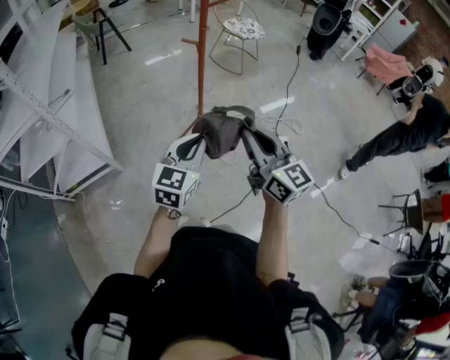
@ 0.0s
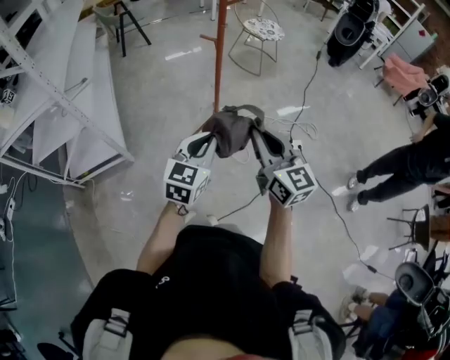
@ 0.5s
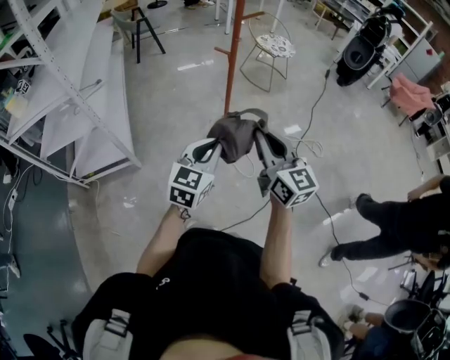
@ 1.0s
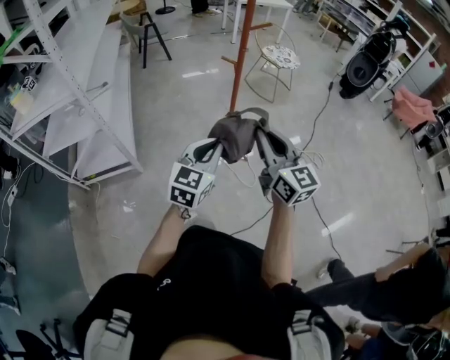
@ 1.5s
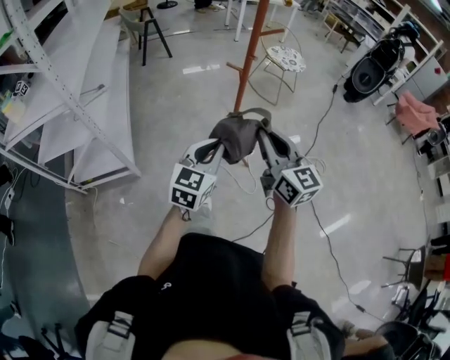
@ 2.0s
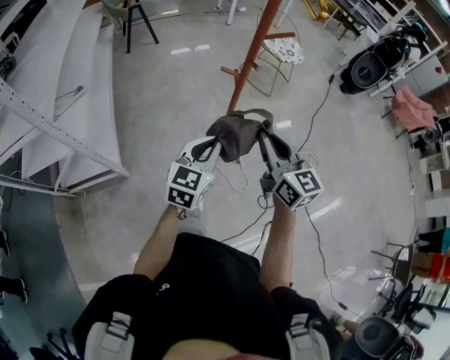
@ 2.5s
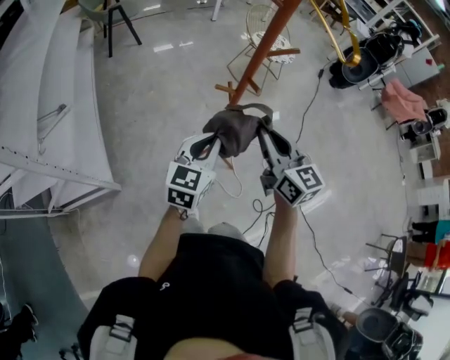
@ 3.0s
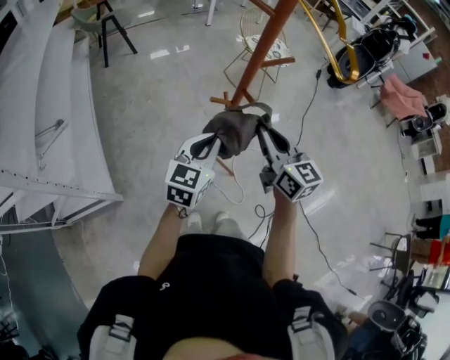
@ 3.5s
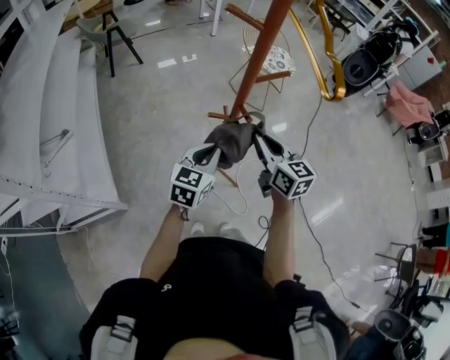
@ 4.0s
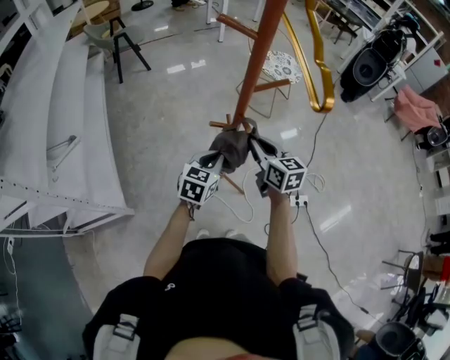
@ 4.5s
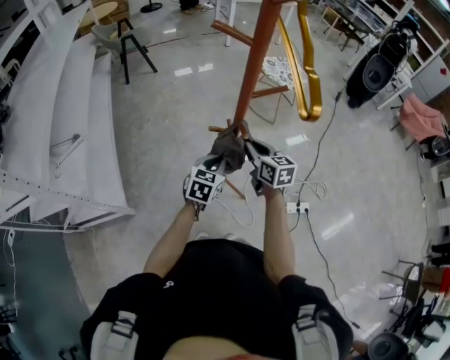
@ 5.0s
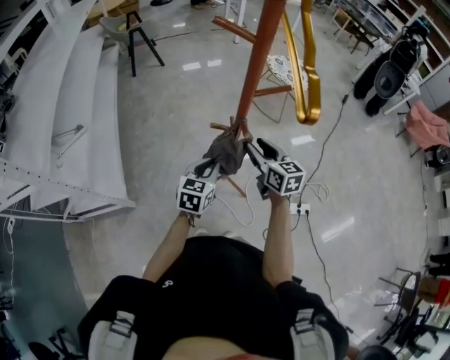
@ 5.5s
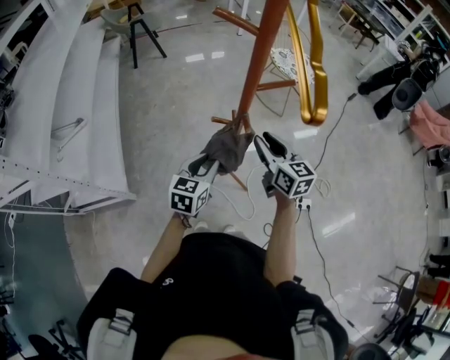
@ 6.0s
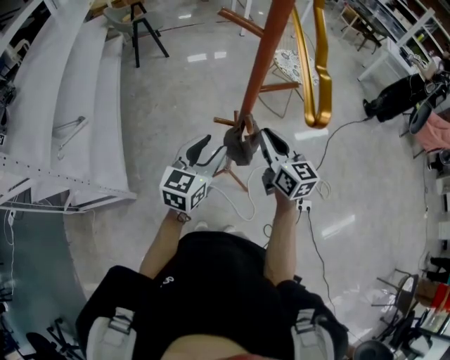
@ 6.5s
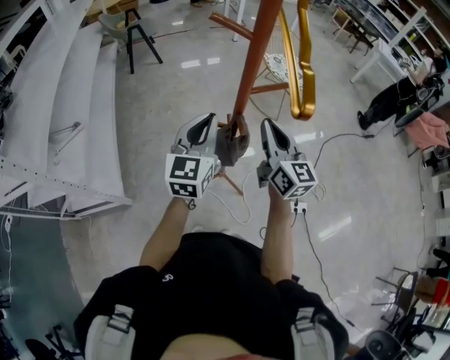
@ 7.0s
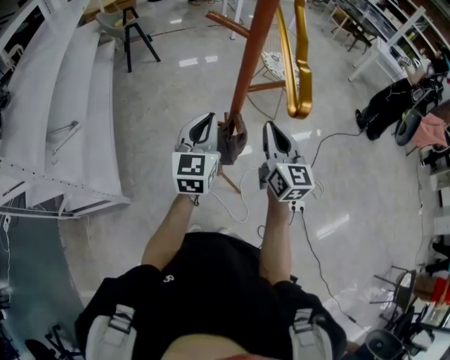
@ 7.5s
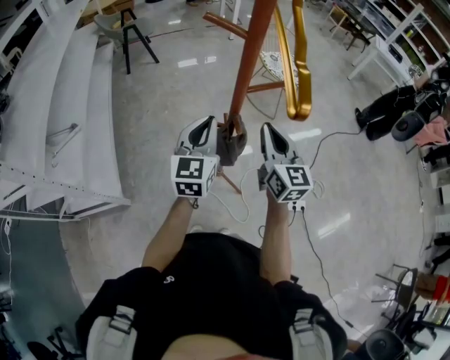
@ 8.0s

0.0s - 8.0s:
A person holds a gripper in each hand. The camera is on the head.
0.0s - 2.0s: The two grippers go approximately 10 cm forward.
2.0s - 4.0s: Both grippers travel together forward, some 35 cm.
4.0s - 6.0s: The left gripper is displaced downward by roughly 5 cm, and opens up; the right gripper opens.
6.0s - 8.0s: The right gripper travels upward by about 10 cm, and closes its fingers. The left gripper goes approximately 15 cm upward and forward, changes its angle by some 30 degrees, and closes up.

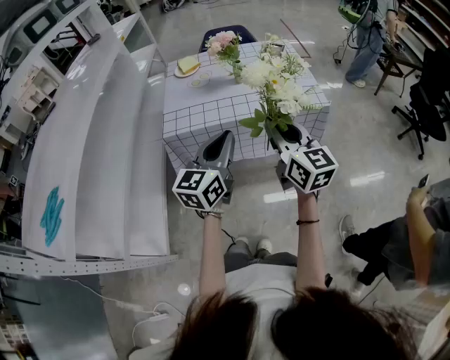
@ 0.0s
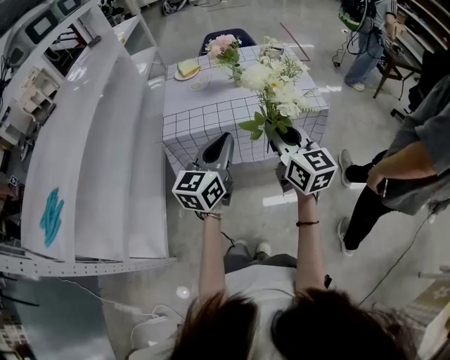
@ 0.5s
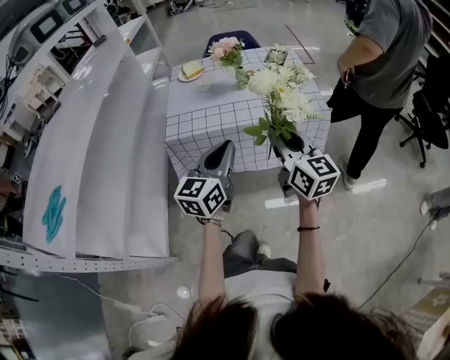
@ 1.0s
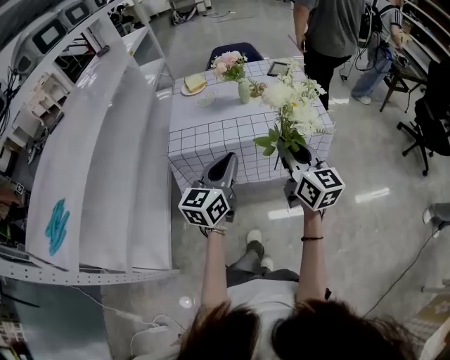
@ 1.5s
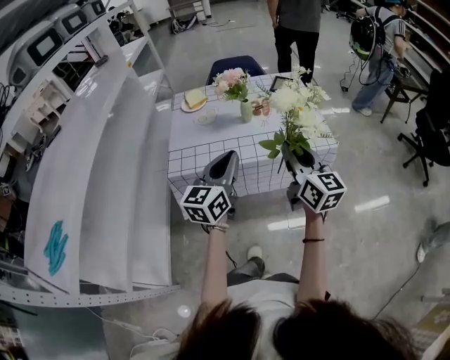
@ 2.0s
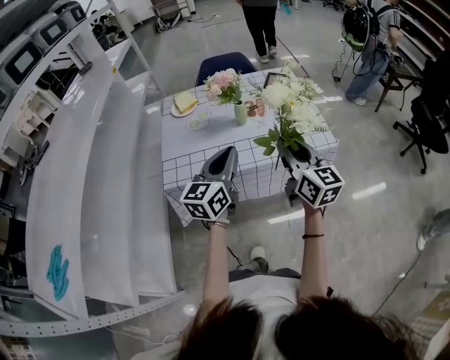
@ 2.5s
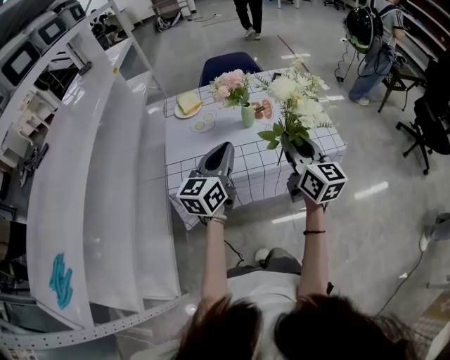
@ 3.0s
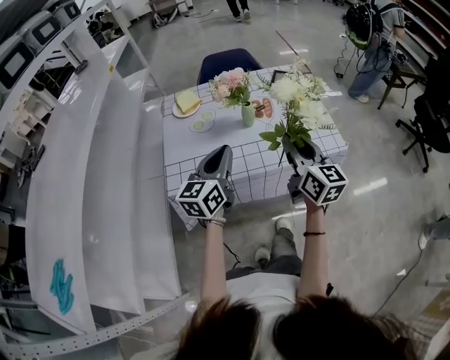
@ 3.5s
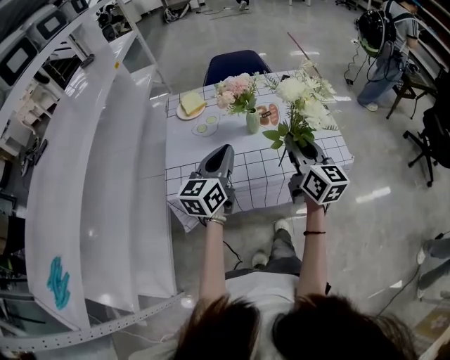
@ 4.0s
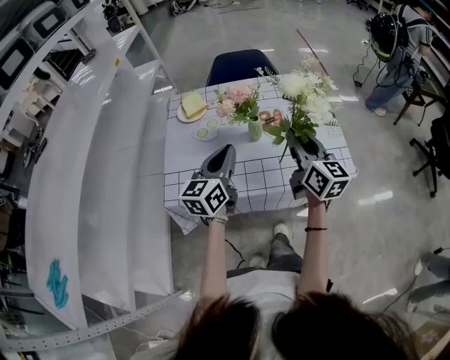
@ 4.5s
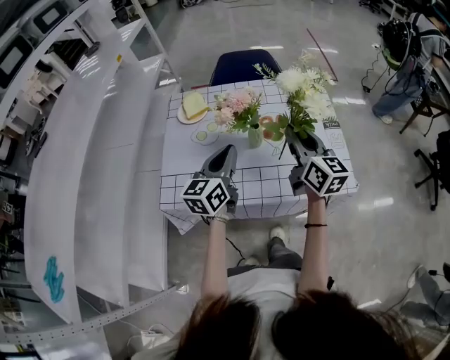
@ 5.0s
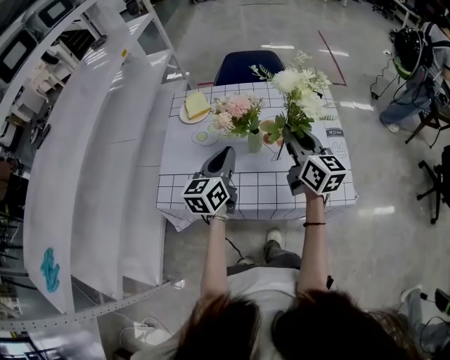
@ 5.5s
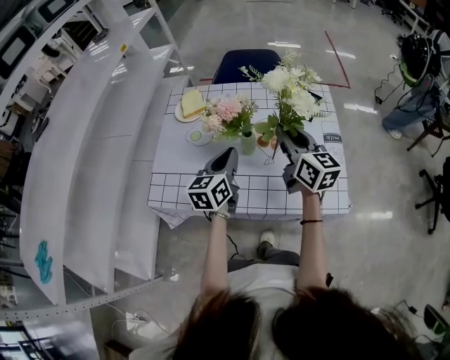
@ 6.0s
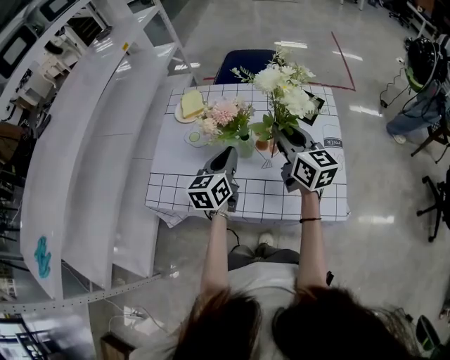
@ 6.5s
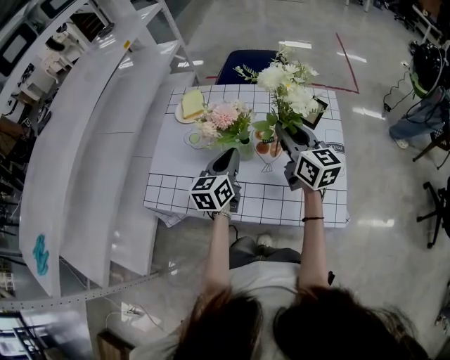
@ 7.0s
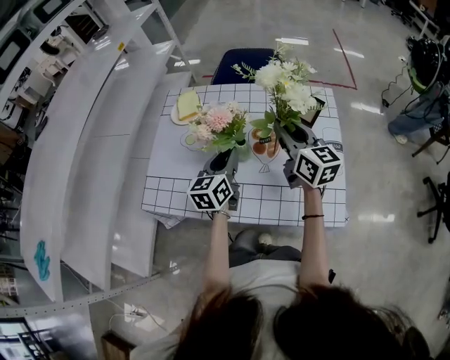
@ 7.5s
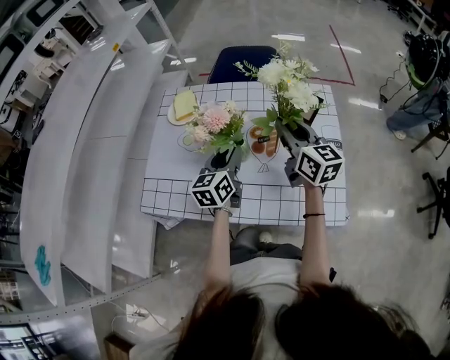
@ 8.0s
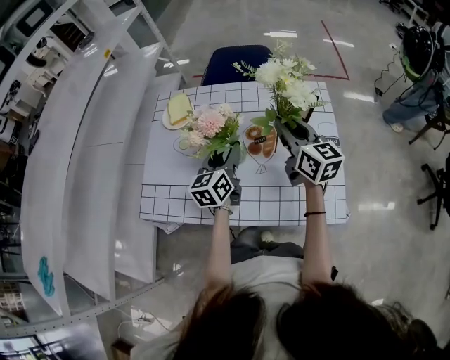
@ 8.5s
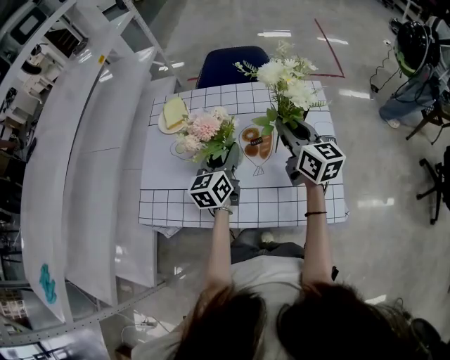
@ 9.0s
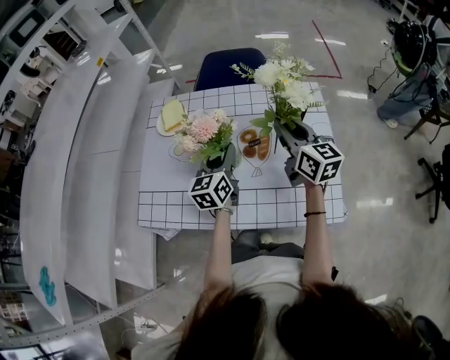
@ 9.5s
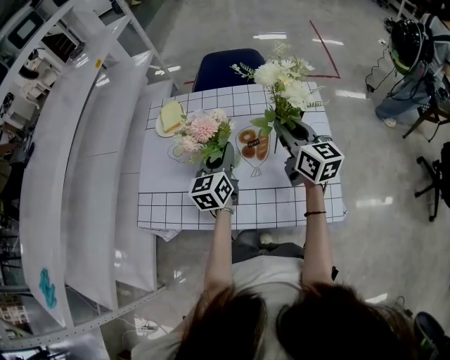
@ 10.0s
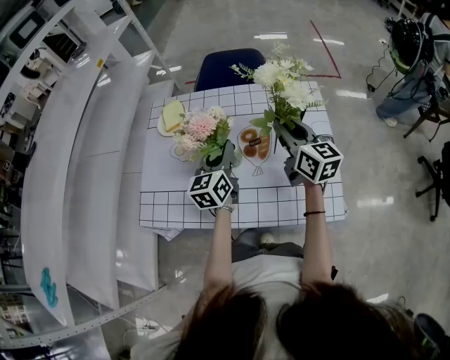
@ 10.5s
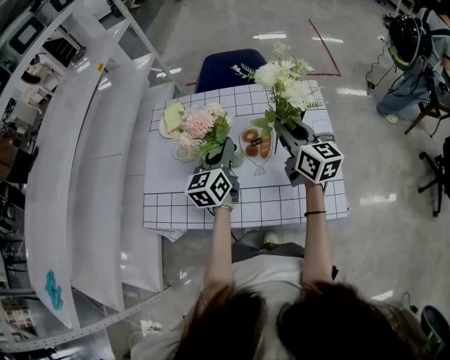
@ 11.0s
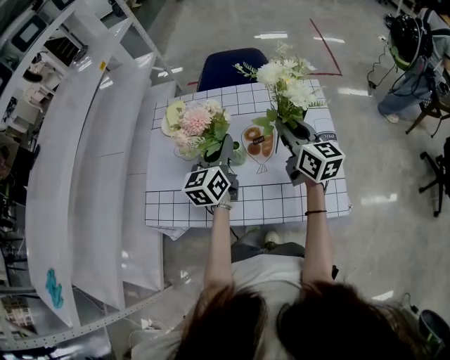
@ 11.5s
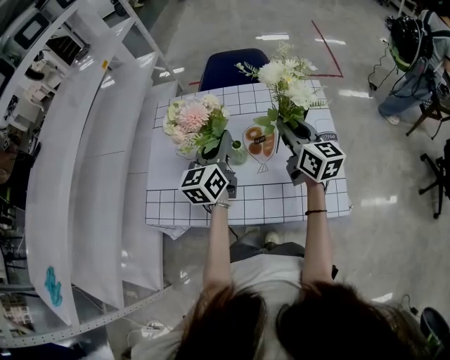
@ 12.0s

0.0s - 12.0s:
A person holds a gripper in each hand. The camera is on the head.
0.0s - 2.0s: The grippers both shift forward by approximately 10 cm.
2.0s - 4.0s: The two grippers go roughly 15 cm forward.
4.0s - 6.0s: The left gripper is displaced forward, downward and to the right by about 15 cm; the right gripper moves forward, approximately 20 cm.
6.0s - 8.0s: Both grippers travel together forward, approximately 5 cm. The left gripper opens.
8.0s - 10.0s: The grippers stay close to where they were, moving slightly.
10.0s - 12.0s: The left gripper travels upward by some 5 cm.

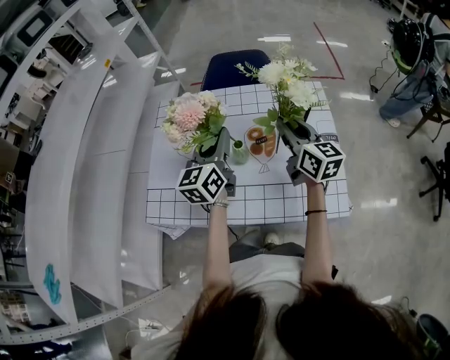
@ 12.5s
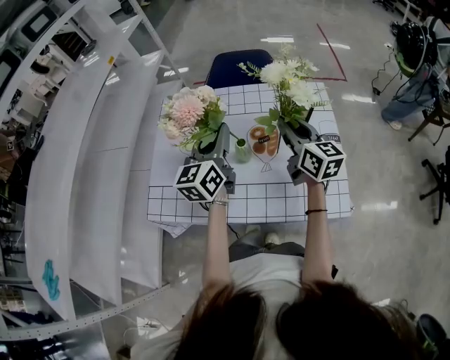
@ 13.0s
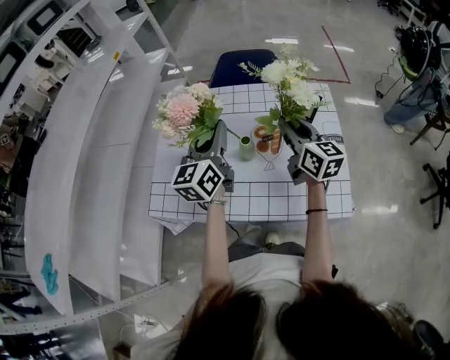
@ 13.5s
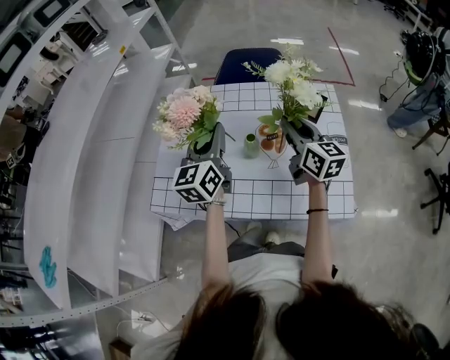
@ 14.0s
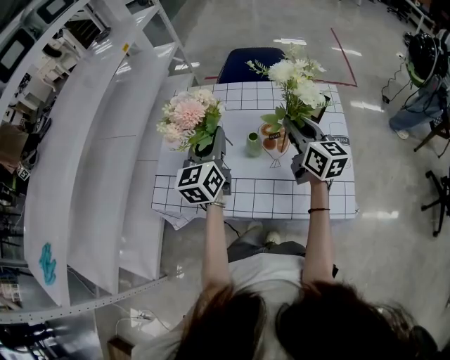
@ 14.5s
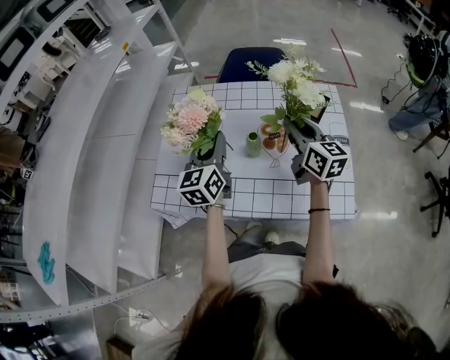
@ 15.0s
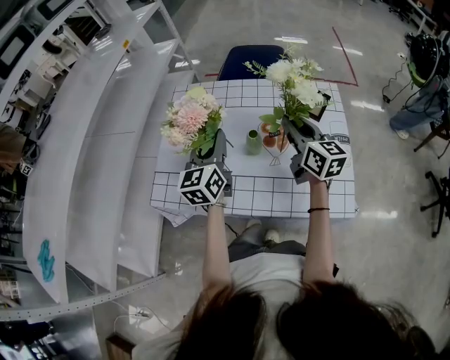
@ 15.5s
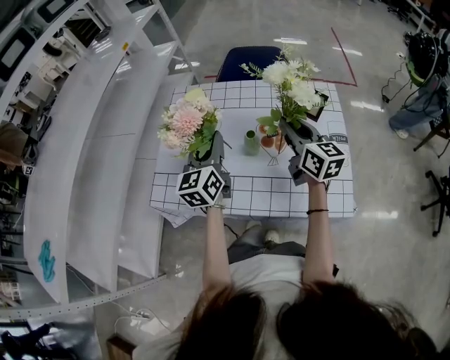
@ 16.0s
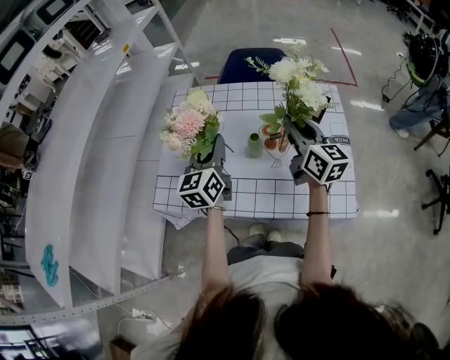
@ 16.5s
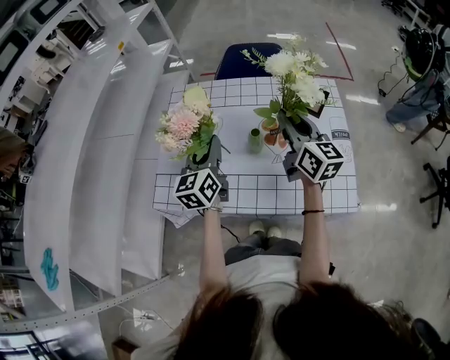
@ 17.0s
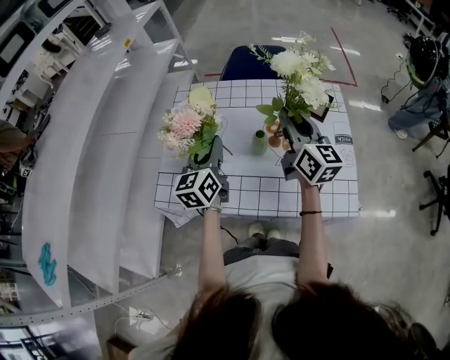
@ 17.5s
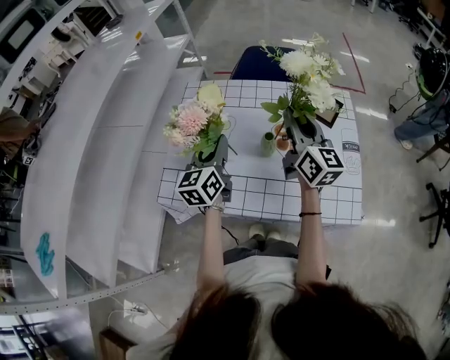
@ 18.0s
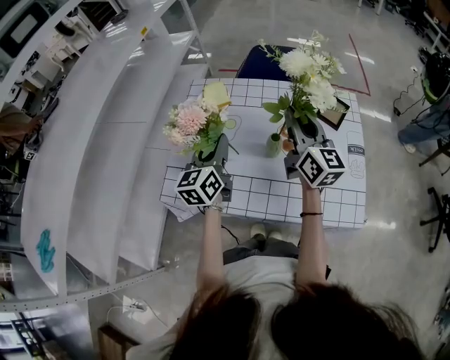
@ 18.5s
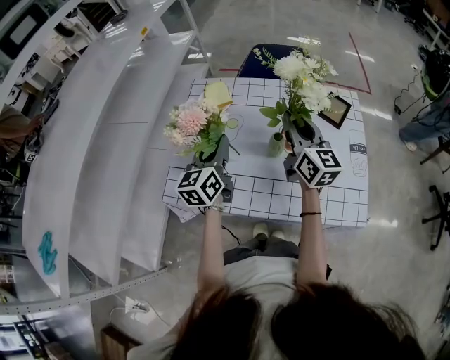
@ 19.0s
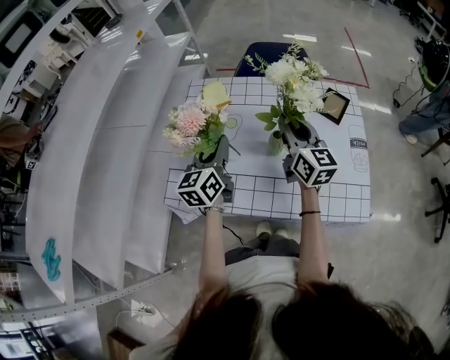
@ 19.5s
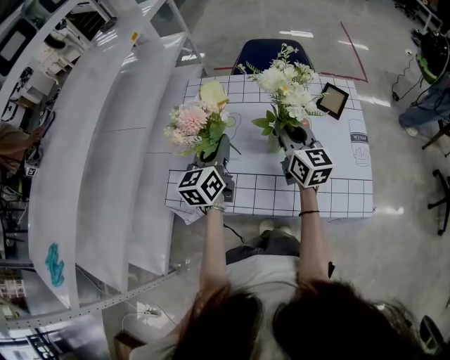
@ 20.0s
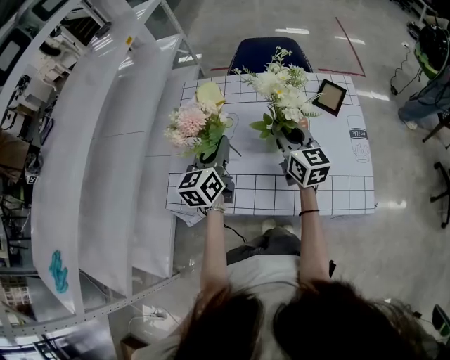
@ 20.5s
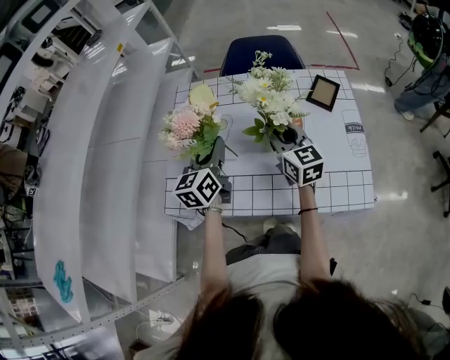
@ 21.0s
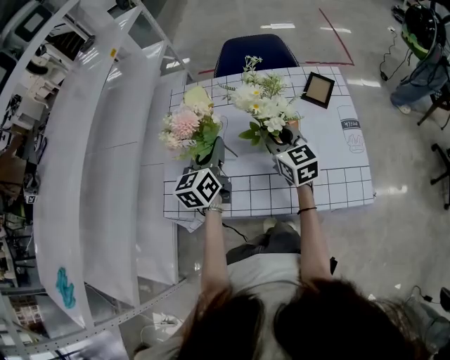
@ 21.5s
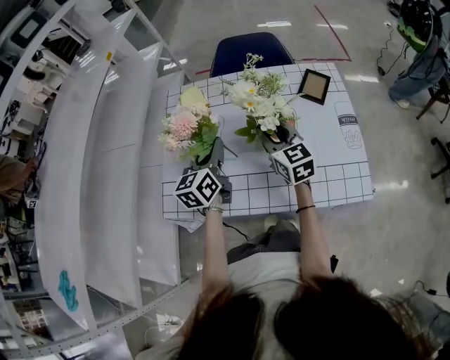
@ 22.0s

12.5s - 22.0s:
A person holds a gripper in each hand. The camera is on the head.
12.5s - 14.5s: The left gripper shifts roughly 5 cm to the left.
14.5s - 16.5s: There are only small adjustments of the grippers.
16.5s - 18.0s: The right gripper shifts by about 5 cm.
18.0s - 20.0s: The right gripper heads downward, covering some 10 cm.
20.0s - 22.0s: The grippers make only small movements.
